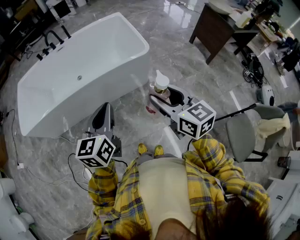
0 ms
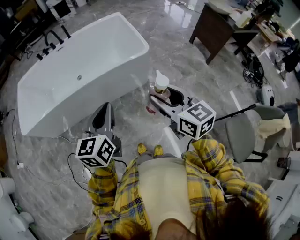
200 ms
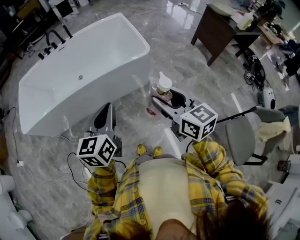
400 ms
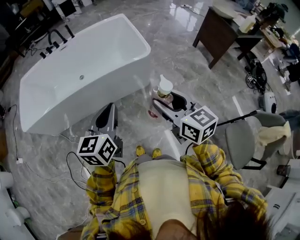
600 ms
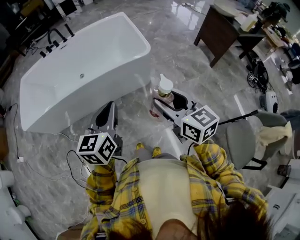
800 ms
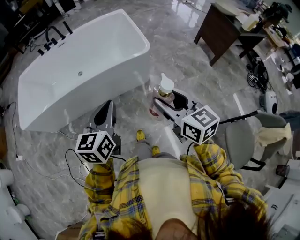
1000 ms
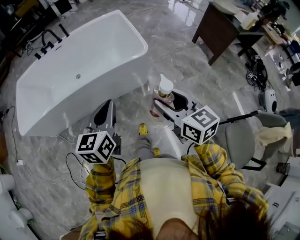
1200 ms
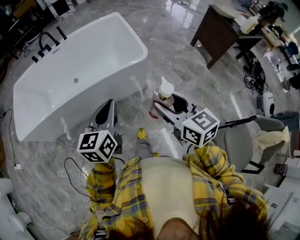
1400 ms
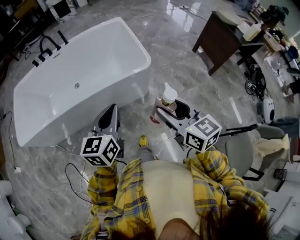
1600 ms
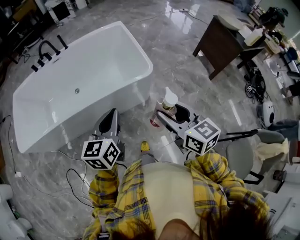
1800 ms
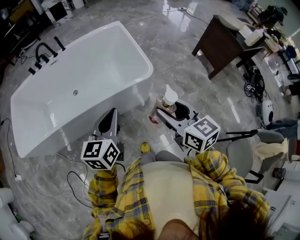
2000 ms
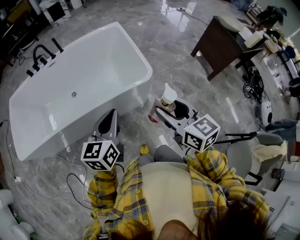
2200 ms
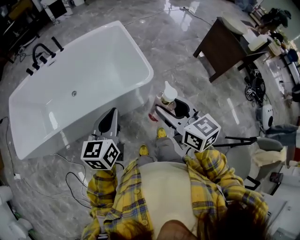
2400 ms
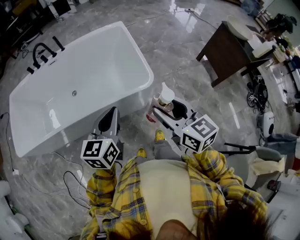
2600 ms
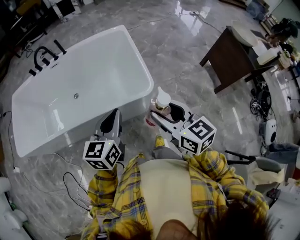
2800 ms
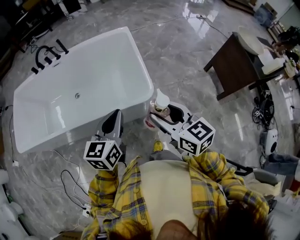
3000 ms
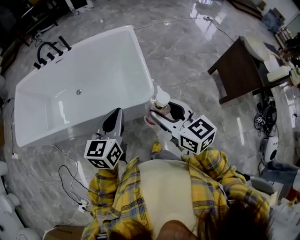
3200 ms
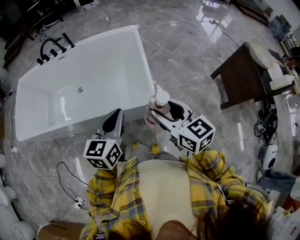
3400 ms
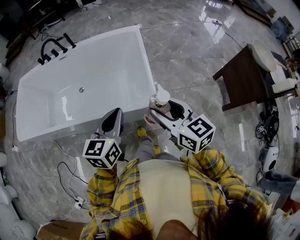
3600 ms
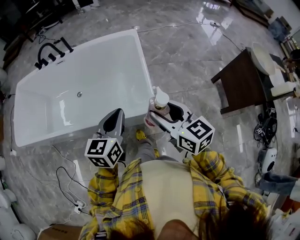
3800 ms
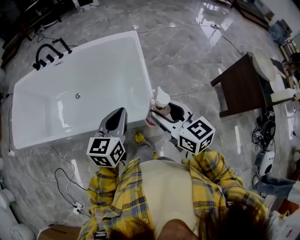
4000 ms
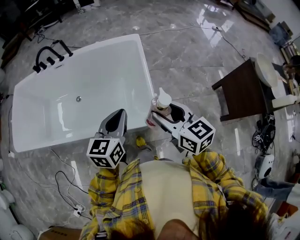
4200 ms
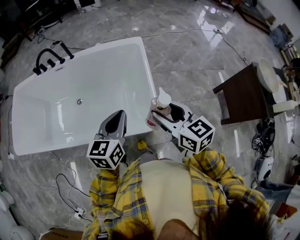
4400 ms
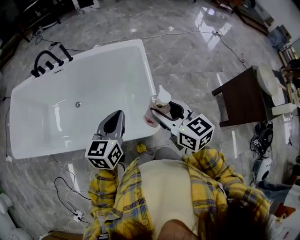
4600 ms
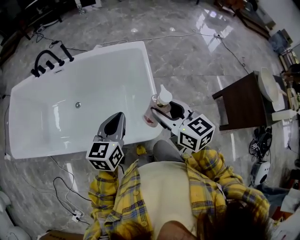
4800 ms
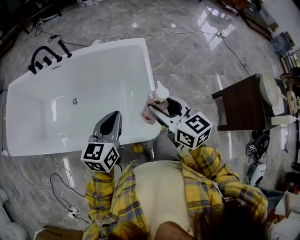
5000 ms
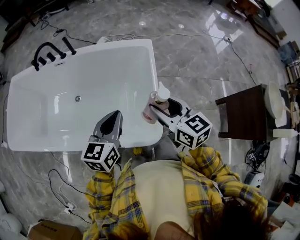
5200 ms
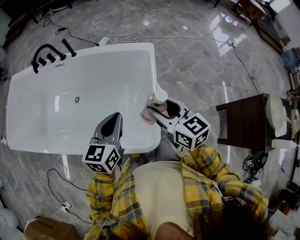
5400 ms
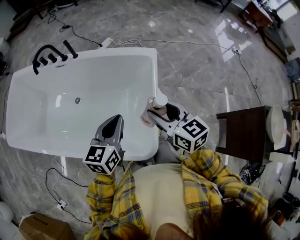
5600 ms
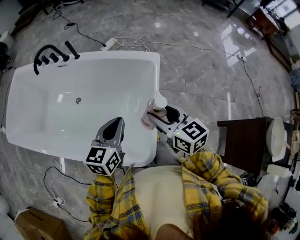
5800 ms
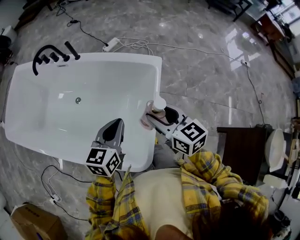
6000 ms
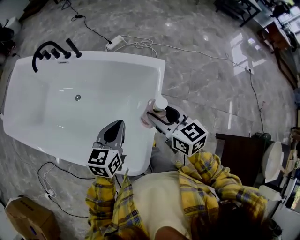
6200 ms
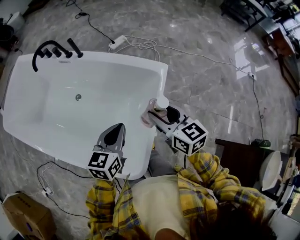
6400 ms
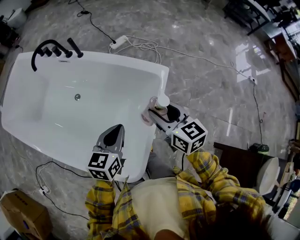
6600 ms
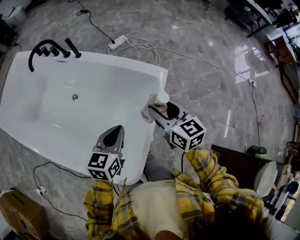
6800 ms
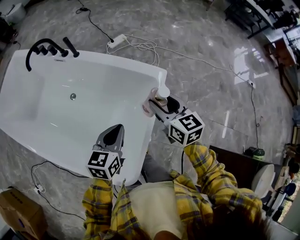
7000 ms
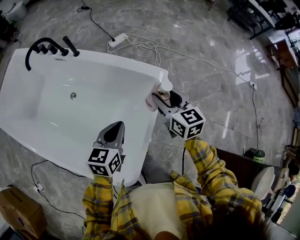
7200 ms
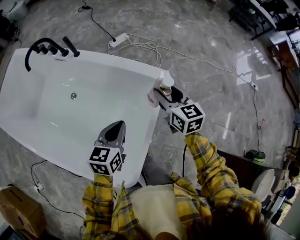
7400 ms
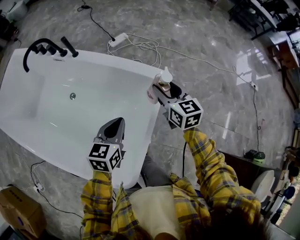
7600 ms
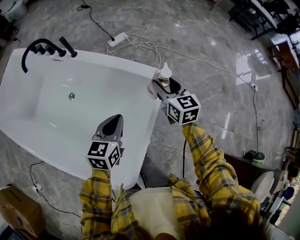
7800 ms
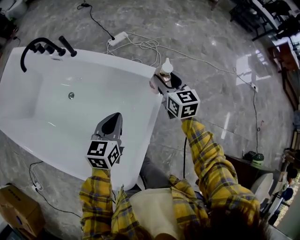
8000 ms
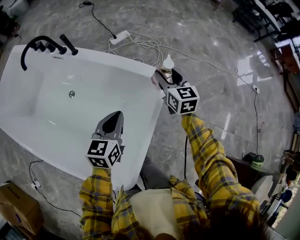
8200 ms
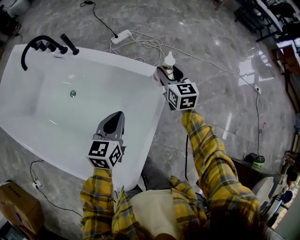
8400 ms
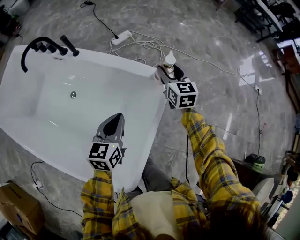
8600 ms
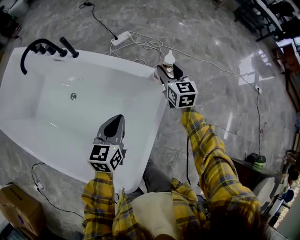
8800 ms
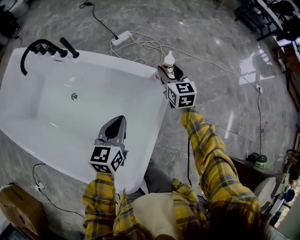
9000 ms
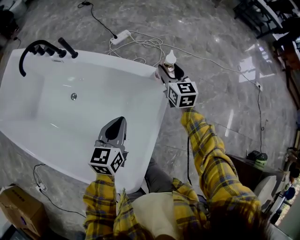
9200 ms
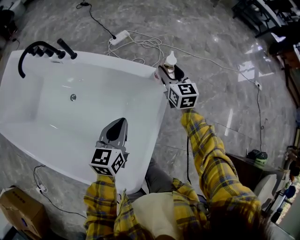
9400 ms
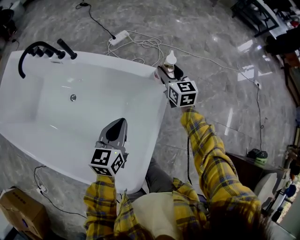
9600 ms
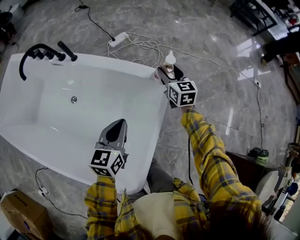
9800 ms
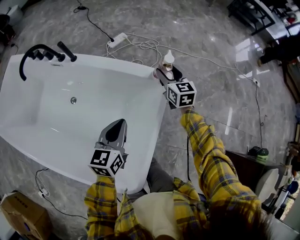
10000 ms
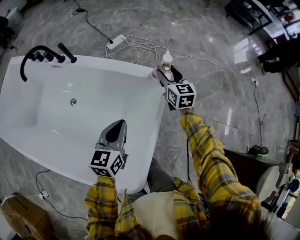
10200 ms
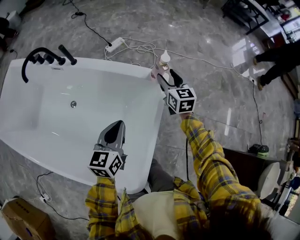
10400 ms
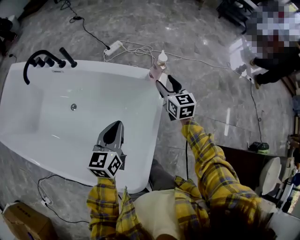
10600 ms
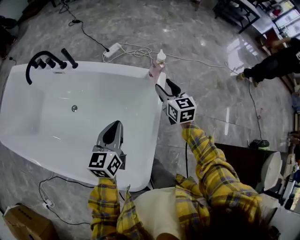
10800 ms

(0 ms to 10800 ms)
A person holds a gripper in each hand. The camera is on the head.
0 ms - 1600 ms: The left gripper is displaced forward and to the right by about 15 cm. The right gripper travels forward by roughly 10 cm.
1600 ms - 3000 ms: The right gripper travels forward by some 20 cm, while the left gripper heads forward and to the right, covering roughly 20 cm.
3000 ms - 4600 ms: The grippers both shift forward by roughly 20 cm.
4600 ms - 6200 ms: The grippers both shift forward by approximately 25 cm. The right gripper rotates about 20 degrees.
6200 ms - 7800 ms: The right gripper is displaced forward by roughly 20 cm; the left gripper heads forward and downward, covering approximately 15 cm.
7800 ms - 9200 ms: The right gripper goes roughly 10 cm forward.
9200 ms - 10800 ms: The left gripper goes approximately 5 cm backward, while the right gripper shifts approximately 10 cm backward.

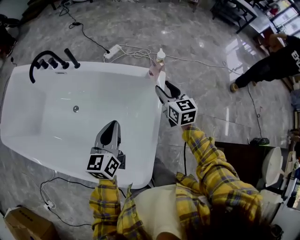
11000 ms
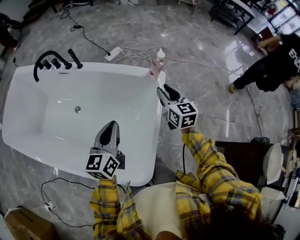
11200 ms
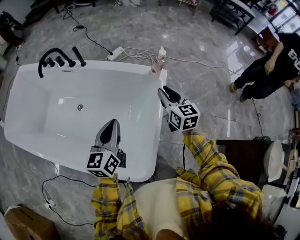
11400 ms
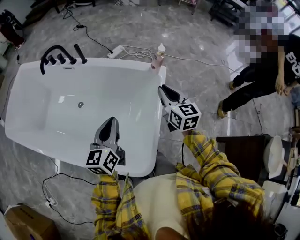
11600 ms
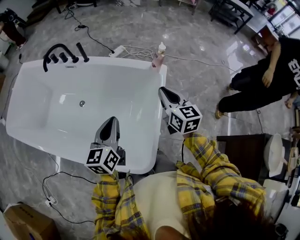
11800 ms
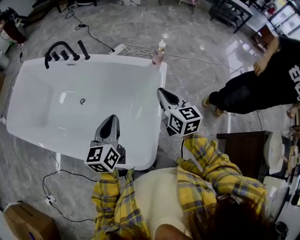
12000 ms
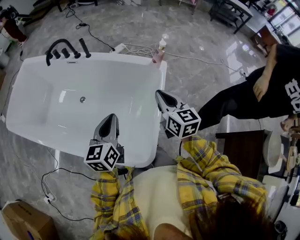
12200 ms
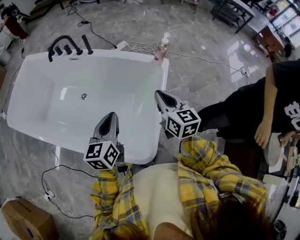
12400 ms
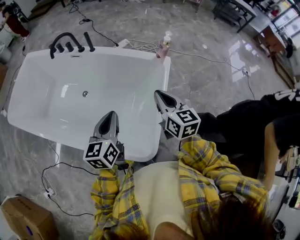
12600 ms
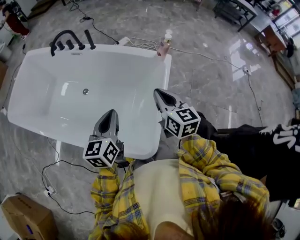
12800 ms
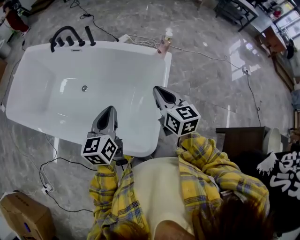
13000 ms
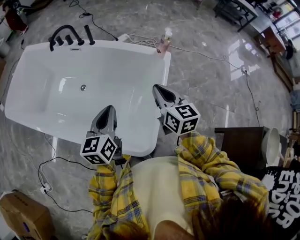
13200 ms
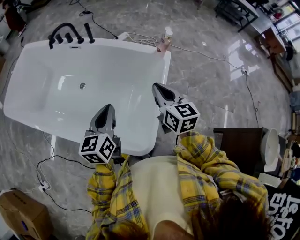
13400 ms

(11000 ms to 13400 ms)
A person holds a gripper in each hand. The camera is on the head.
11000 ms - 12200 ms: The left gripper shifts about 10 cm backward; the right gripper goes approximately 20 cm backward, upward and to the left, and closes up.
12200 ms - 13400 ms: There are only small adjustments of the grippers.

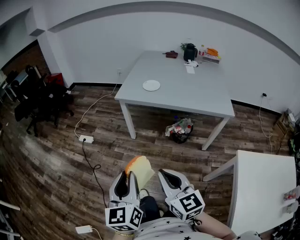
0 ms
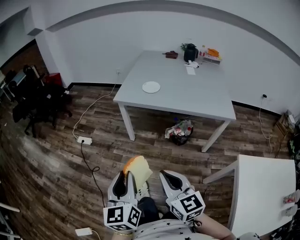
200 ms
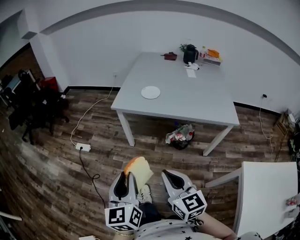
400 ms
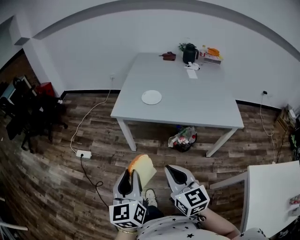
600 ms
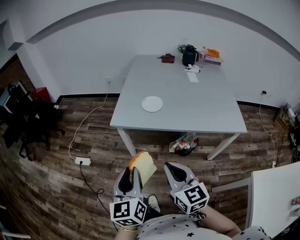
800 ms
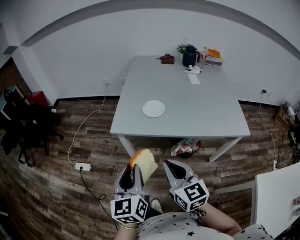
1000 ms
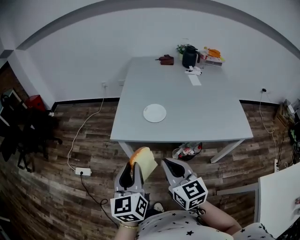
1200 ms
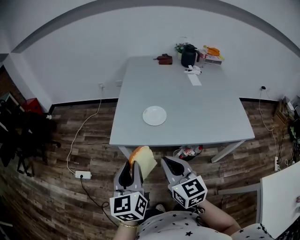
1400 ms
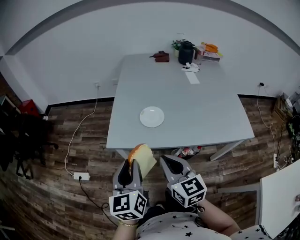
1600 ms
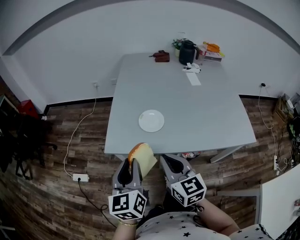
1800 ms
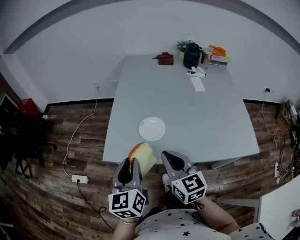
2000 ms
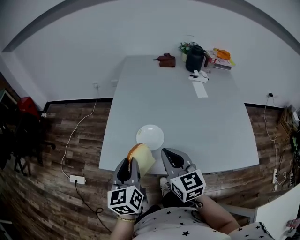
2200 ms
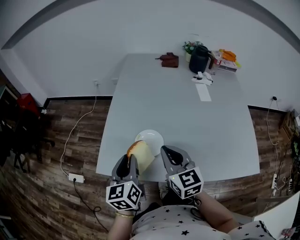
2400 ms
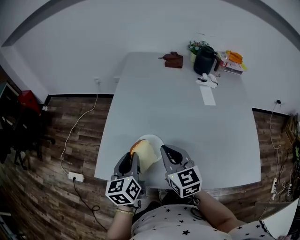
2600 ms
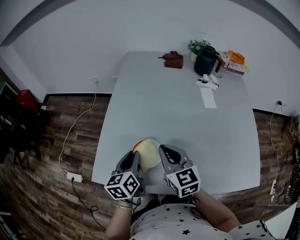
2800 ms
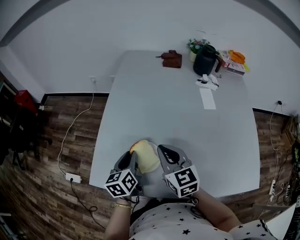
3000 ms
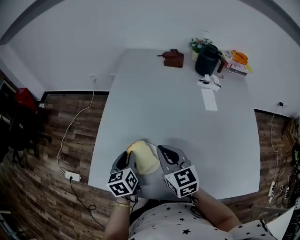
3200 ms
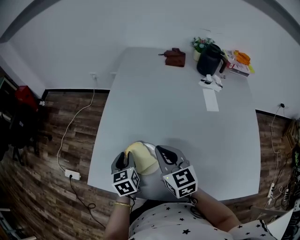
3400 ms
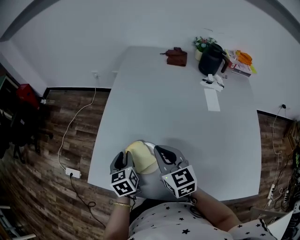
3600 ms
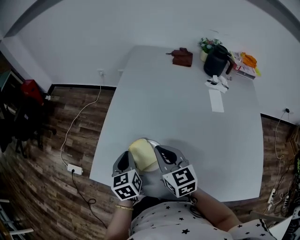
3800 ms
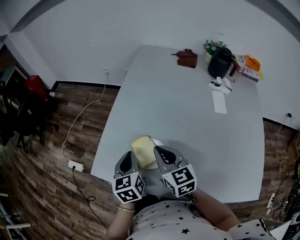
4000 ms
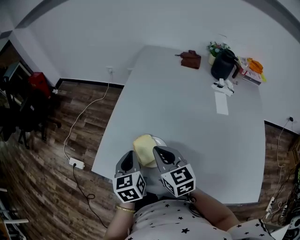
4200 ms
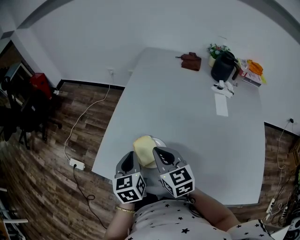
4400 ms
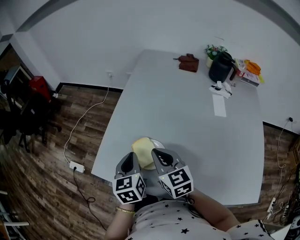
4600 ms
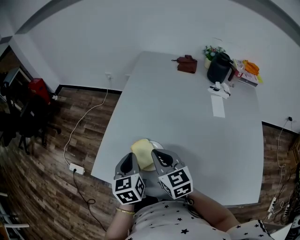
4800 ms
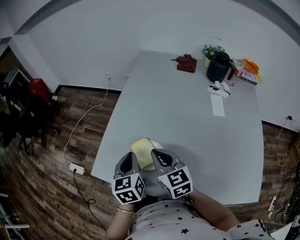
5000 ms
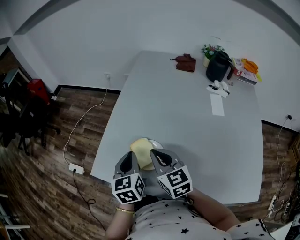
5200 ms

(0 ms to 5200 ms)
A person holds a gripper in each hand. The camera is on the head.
0 ms - 1800 ms: The pair of grippers is taken forward, some 50 cm.
1800 ms - 3400 ms: The right gripper goes about 30 cm forward, while the left gripper moves forward and downward, some 35 cm, and rotates roughly 30 degrees.
3400 ms - 5200 ms: The left gripper heads upward, covering about 10 cm, and closes.

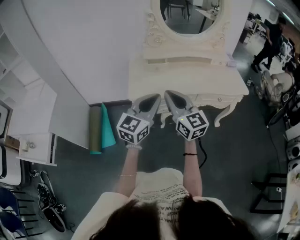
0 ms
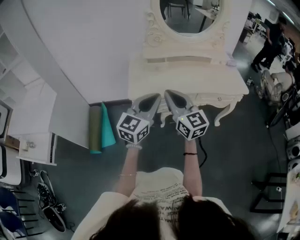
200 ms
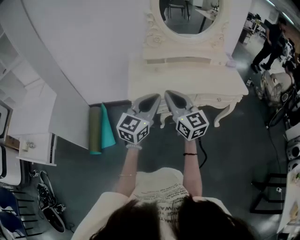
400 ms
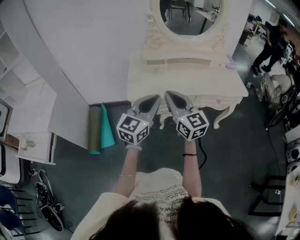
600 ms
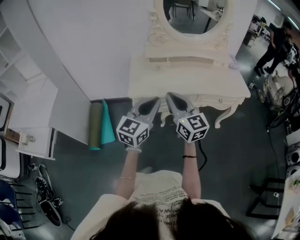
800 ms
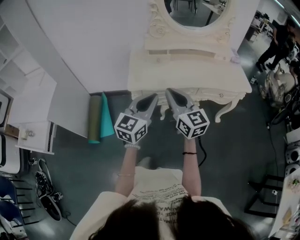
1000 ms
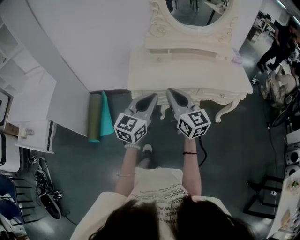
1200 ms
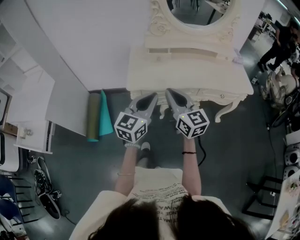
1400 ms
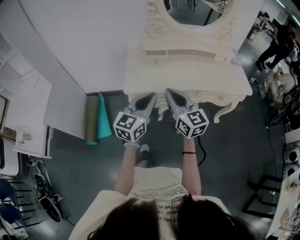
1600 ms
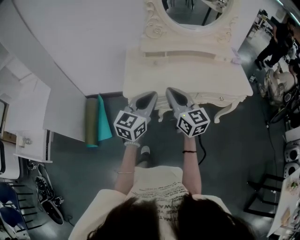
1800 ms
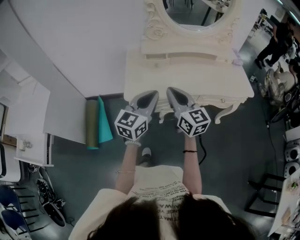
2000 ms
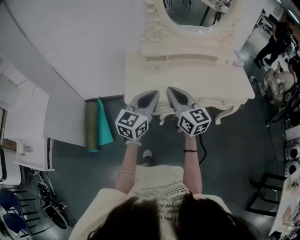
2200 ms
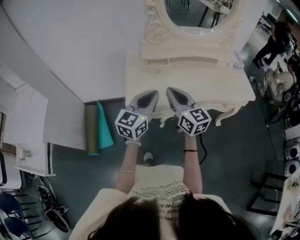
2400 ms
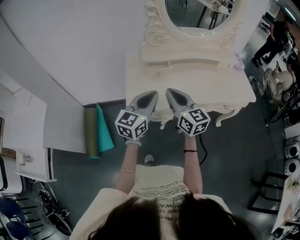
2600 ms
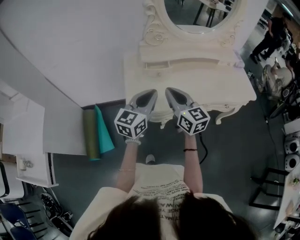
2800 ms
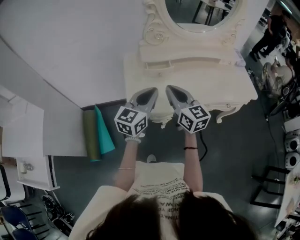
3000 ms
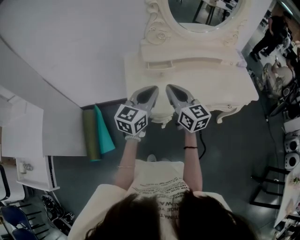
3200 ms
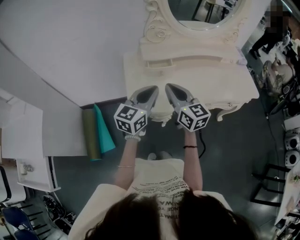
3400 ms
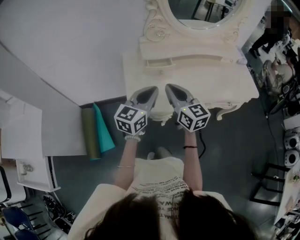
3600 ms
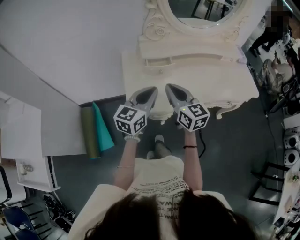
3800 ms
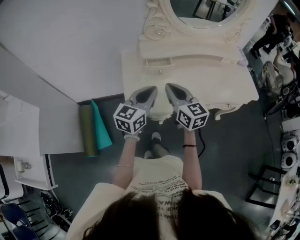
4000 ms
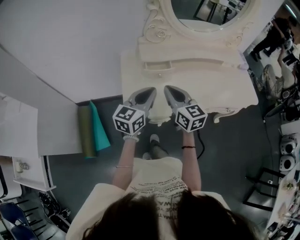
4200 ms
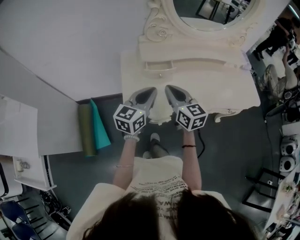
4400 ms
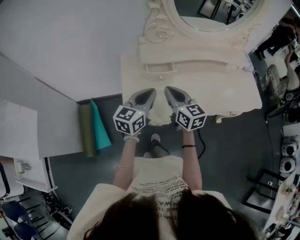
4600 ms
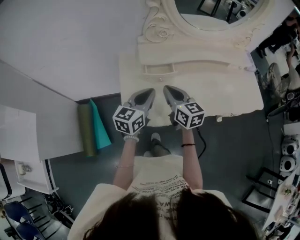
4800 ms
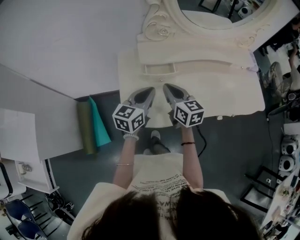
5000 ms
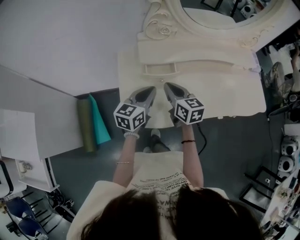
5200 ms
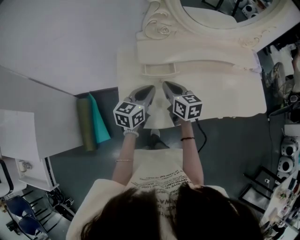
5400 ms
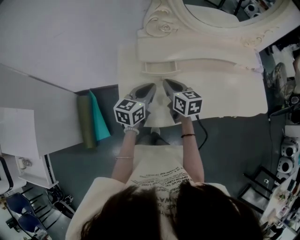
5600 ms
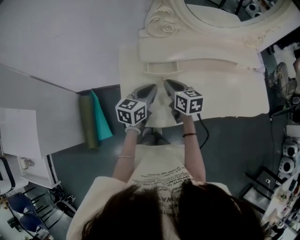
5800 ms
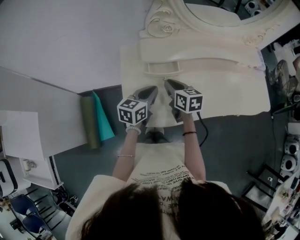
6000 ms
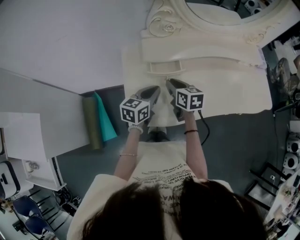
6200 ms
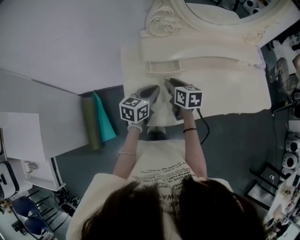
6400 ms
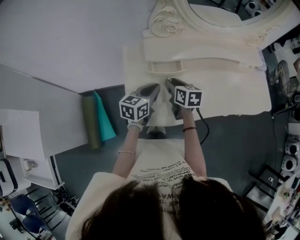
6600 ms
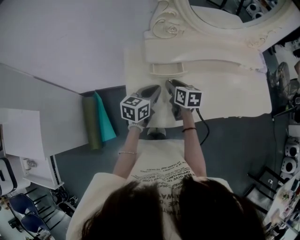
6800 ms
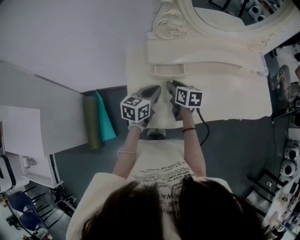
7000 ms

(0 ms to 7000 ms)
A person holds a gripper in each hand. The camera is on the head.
0 ms - 1400 ms: The right gripper moves roughly 5 cm.
1400 ms - 2800 ms: The two grippers go about 20 cm forward.
2800 ms - 4200 ms: Both grippers travel together forward, roughly 5 cm.
4200 ms - 5600 ms: The two grippers go about 15 cm forward and downward. The right gripper changes its angle by roughly 20 degrees.
5600 ms - 7000 ms: The right gripper moves roughly 5 cm, and opens up.
